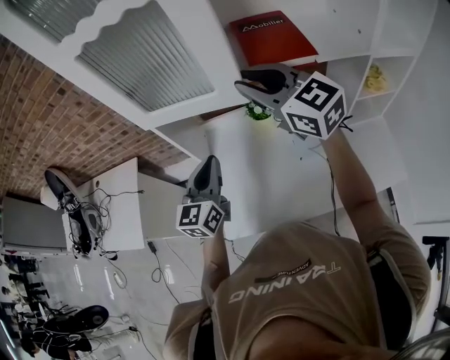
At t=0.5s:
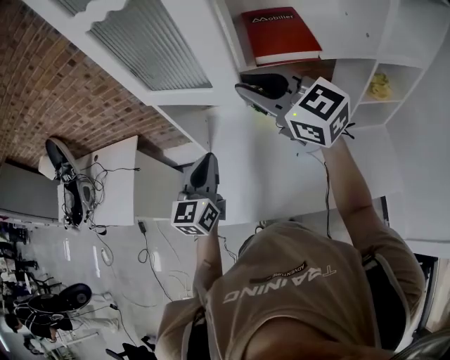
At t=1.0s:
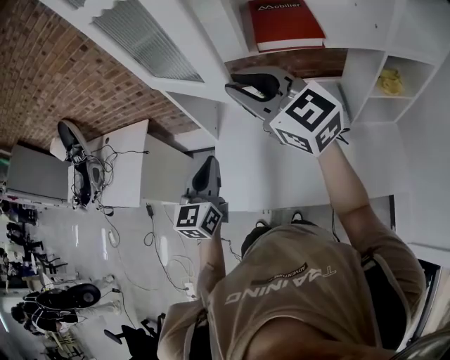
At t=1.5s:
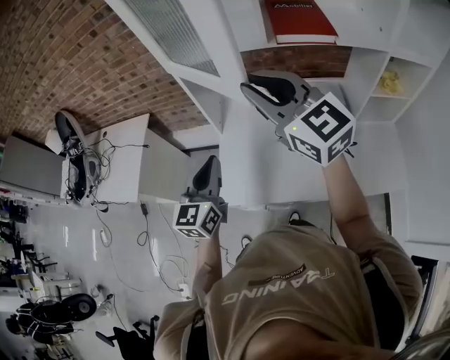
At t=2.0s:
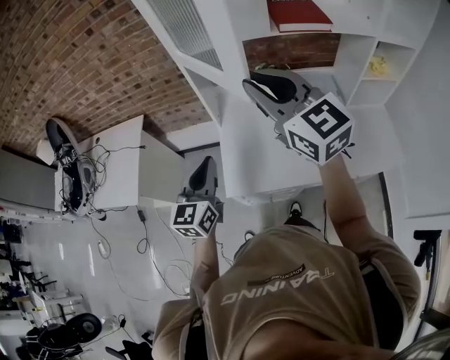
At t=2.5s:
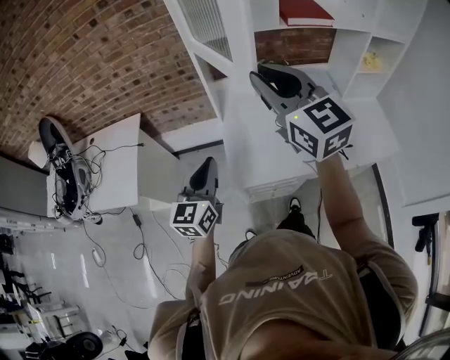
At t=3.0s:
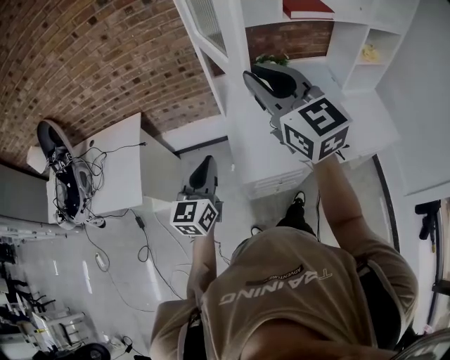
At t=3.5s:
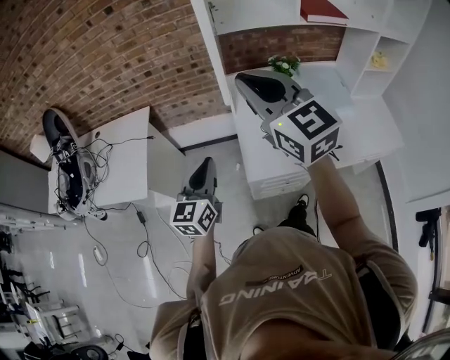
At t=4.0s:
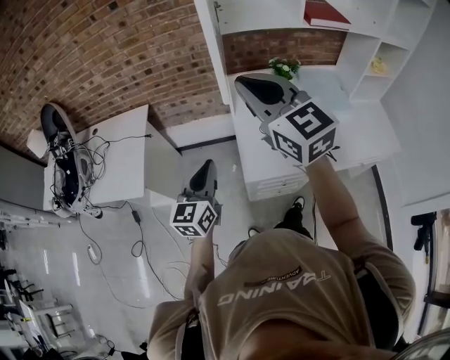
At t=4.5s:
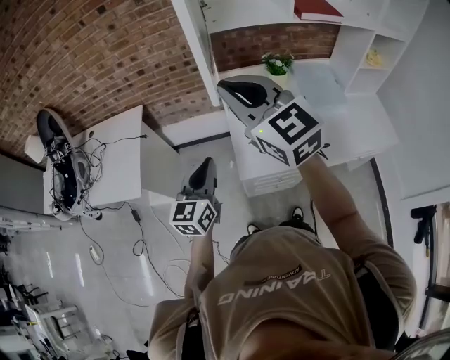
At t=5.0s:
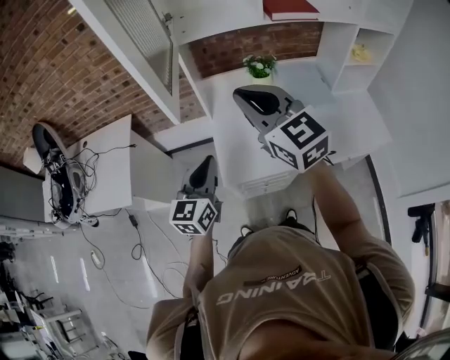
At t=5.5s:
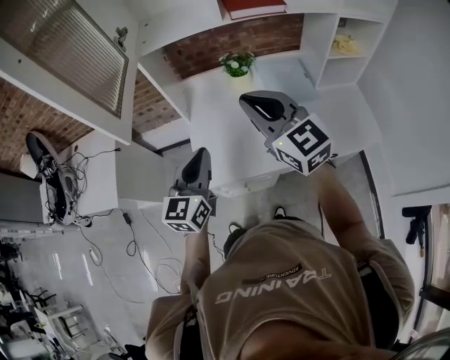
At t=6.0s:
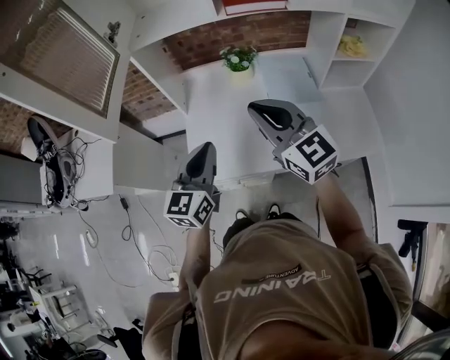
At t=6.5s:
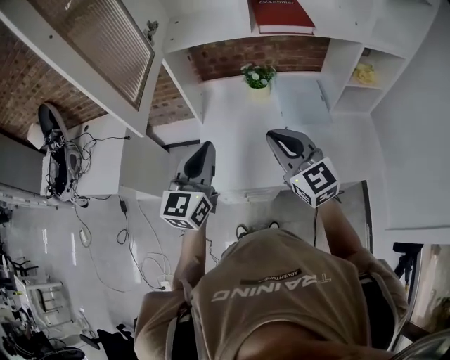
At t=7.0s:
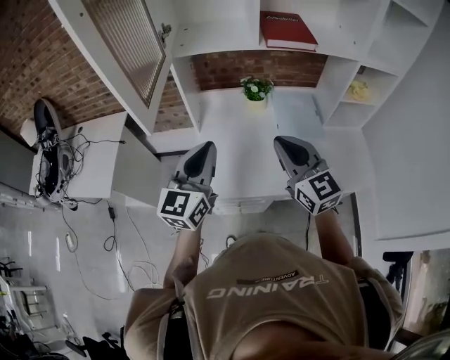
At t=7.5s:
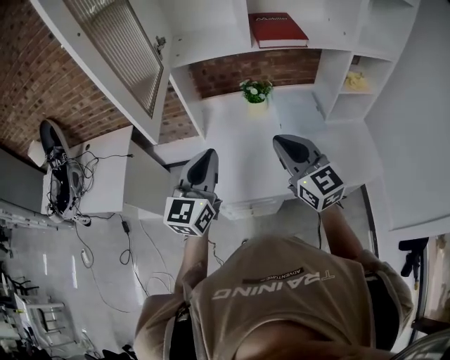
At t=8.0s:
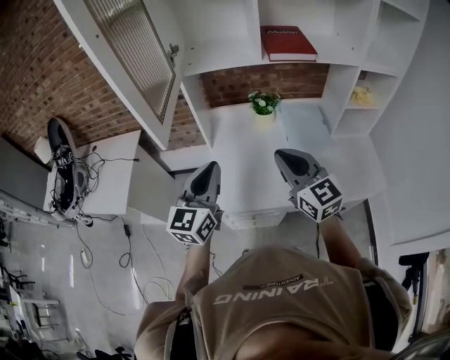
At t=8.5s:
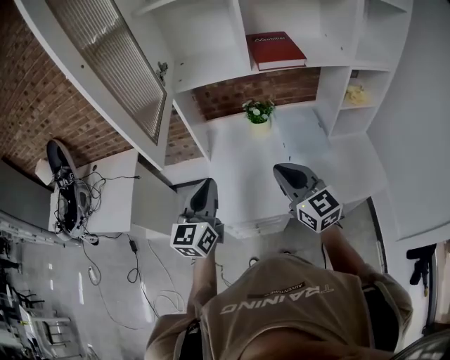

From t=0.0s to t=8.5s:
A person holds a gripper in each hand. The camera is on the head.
From t=0.0s to t=2.0s: The two grippers go approximately 20 cm backward and to the left.
From t=2.0s to t=4.0s: Both grippers move to the left, about 15 cm.
From t=4.0s to t=6.5s: The left gripper shifts some 25 cm to the right. The right gripper is displaced to the right and downward by some 30 cm.
From t=6.5s to t=8.5s: The grippers move only a little.

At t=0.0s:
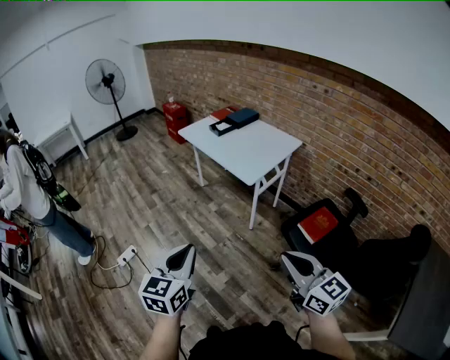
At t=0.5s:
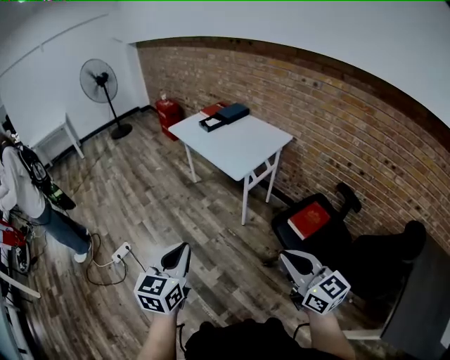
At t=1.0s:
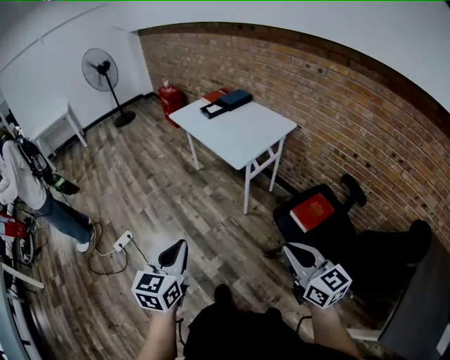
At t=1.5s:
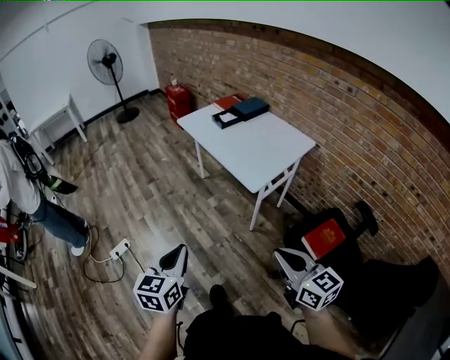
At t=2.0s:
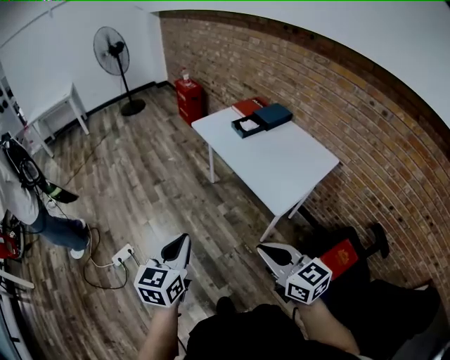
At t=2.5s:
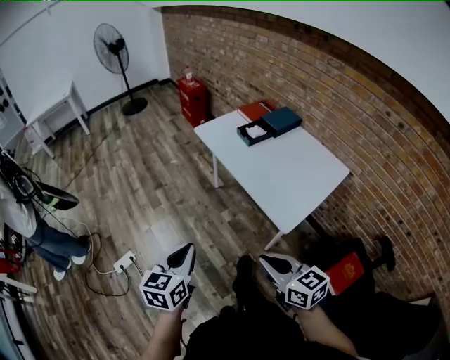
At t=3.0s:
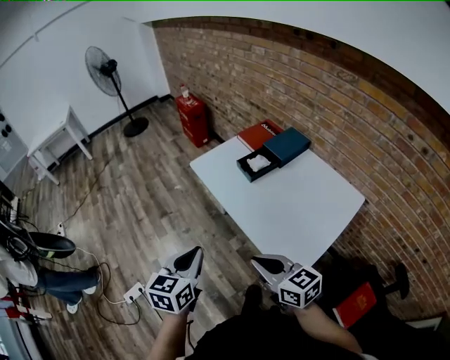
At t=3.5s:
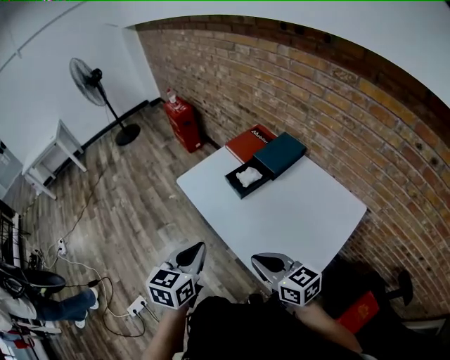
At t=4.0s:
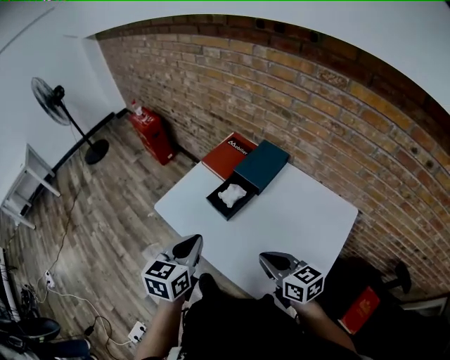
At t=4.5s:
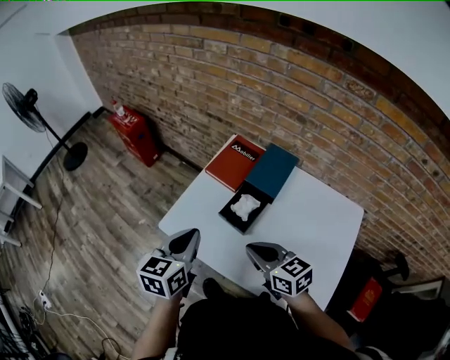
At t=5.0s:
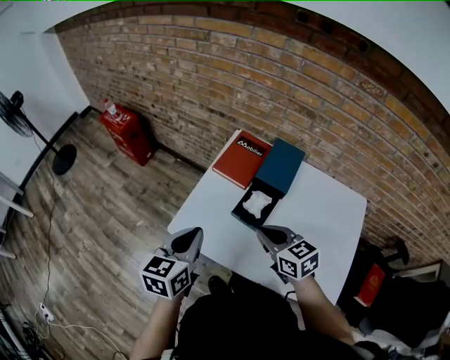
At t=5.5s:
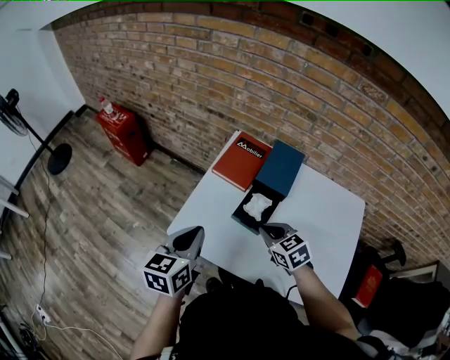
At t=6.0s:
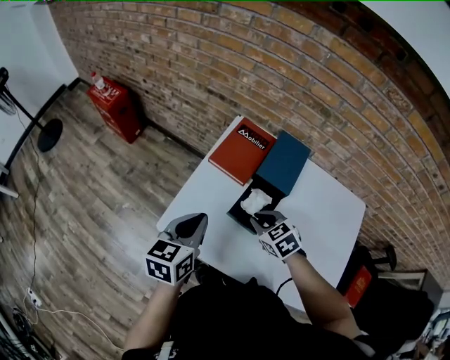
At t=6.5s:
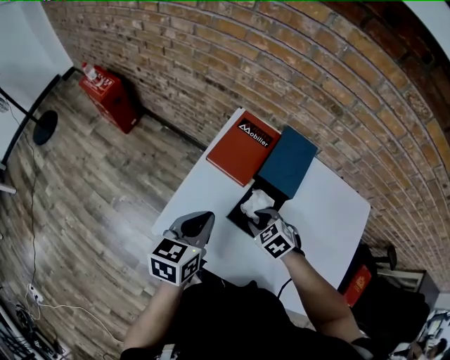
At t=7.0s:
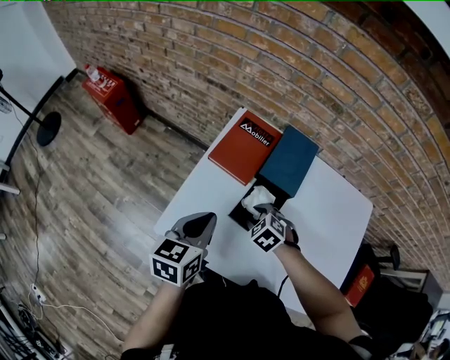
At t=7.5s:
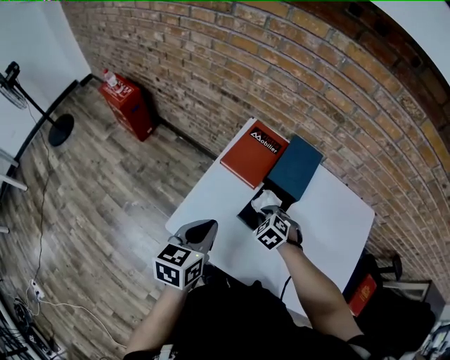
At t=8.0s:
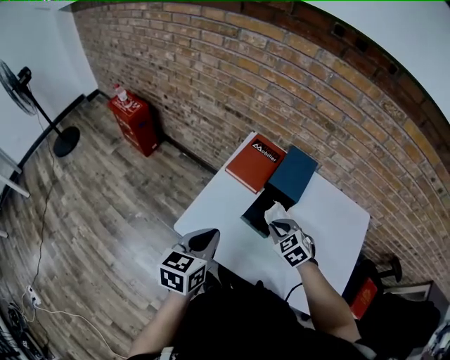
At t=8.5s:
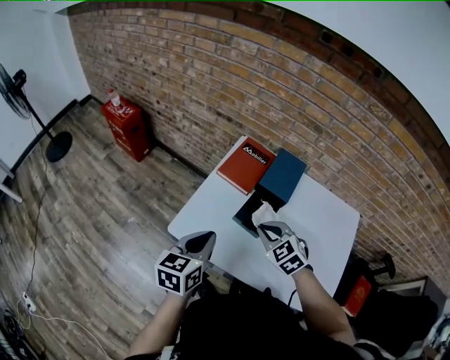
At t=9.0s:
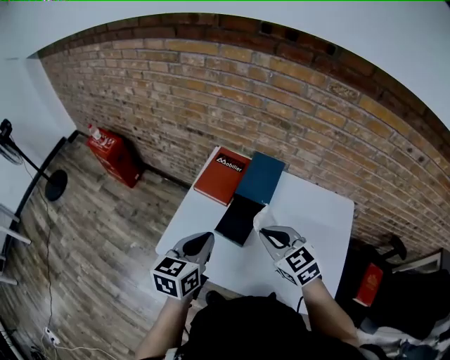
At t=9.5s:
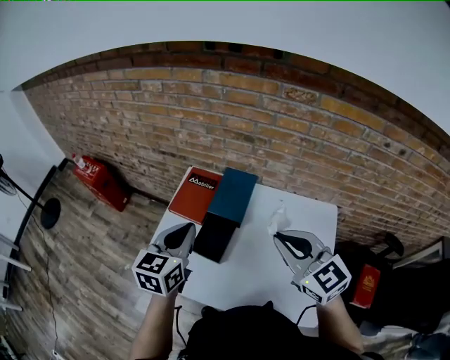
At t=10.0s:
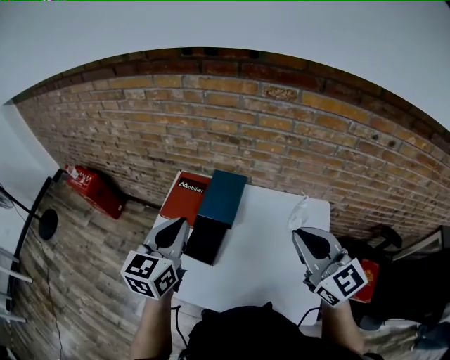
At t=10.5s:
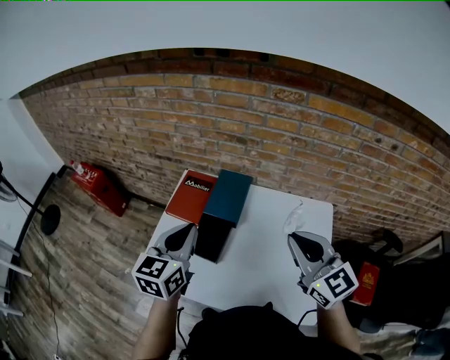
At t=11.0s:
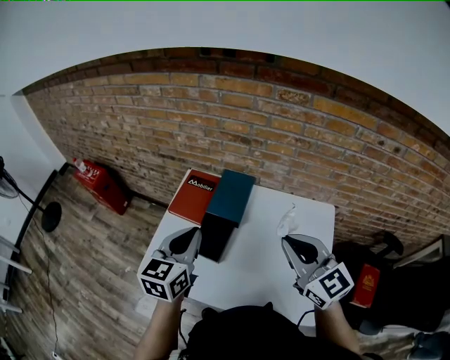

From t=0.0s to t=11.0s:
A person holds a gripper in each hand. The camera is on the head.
From t=0.0s to t=2.0s: Both grippers travel together forward, some 30 cm.
From t=2.0s to t=3.5s: The pair of grippers is taken forward, approximately 40 cm.
From t=3.5s to t=5.5s: The right gripper ends up some 35 cm from where it was, and turns by about 40 degrees; the left gripper moves approximately 35 cm, and rotates approximately 30 degrees.
From t=5.5s to t=7.5s: The right gripper moves downward and forward, roughly 15 cm, changes its angle by approximately 30 degrees, and opens, then closes again.
From t=7.5s to t=9.0s: The left gripper heads upward and to the right, covering approximately 10 cm; the right gripper shifts about 25 cm upward, and points its fingers roughly 30 degrees further upward.
From t=9.0s to t=11.0s: The left gripper is displaced to the right and upward by roughly 10 cm. Meanwhile the right gripper travels to the right and upward by approximately 20 cm, and swivels approximately 30 degrees.

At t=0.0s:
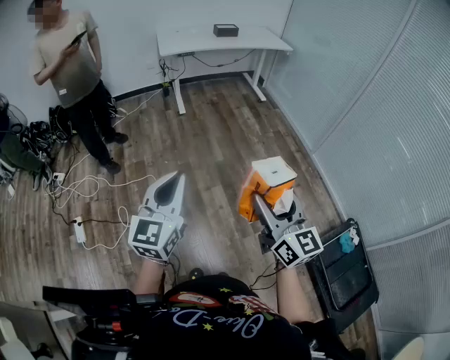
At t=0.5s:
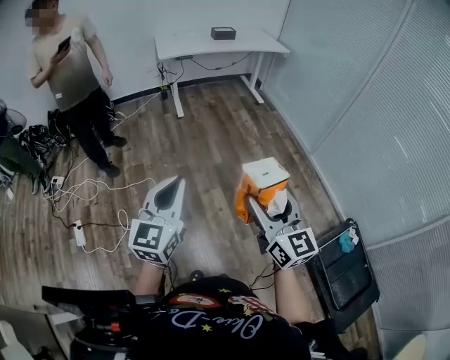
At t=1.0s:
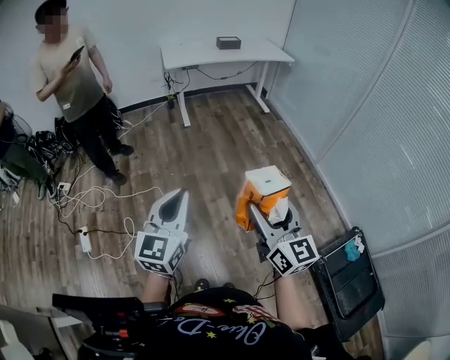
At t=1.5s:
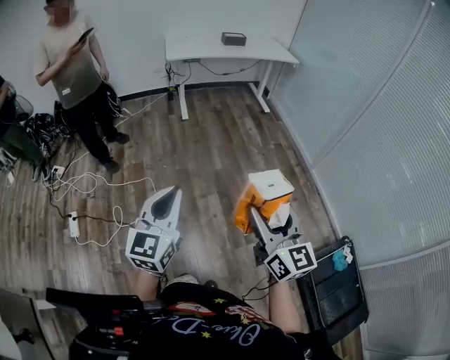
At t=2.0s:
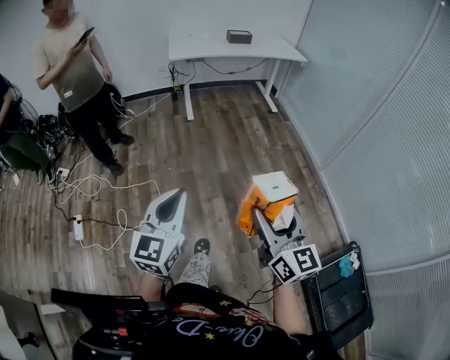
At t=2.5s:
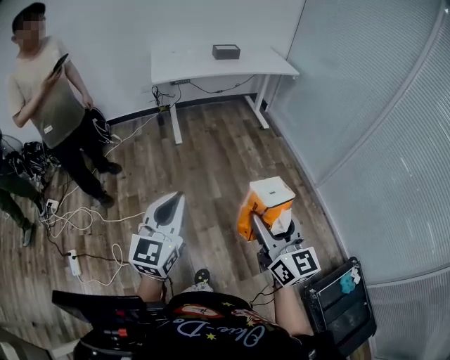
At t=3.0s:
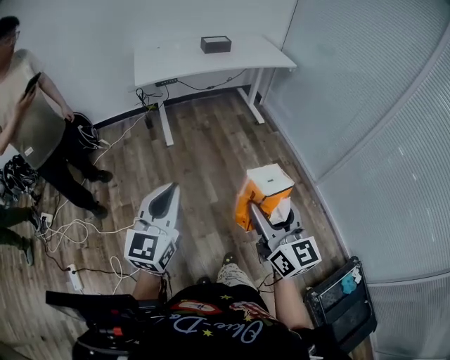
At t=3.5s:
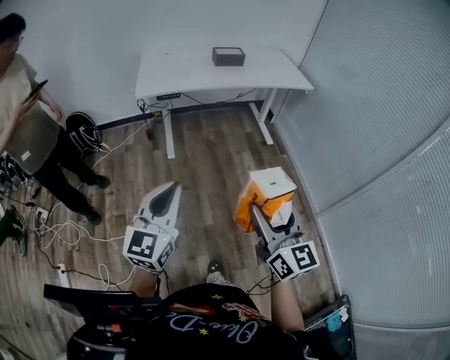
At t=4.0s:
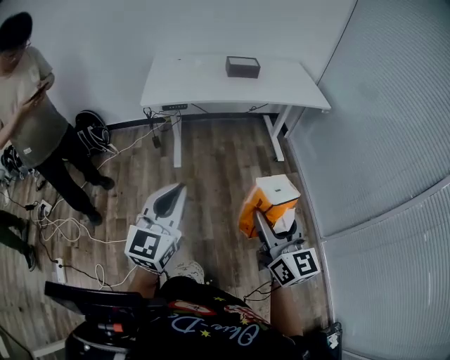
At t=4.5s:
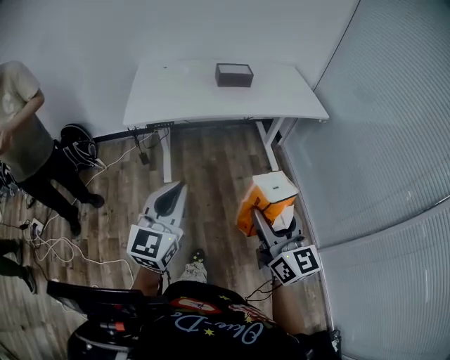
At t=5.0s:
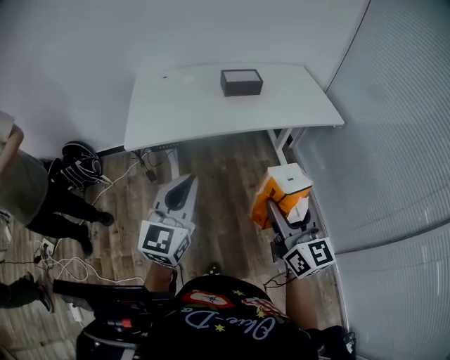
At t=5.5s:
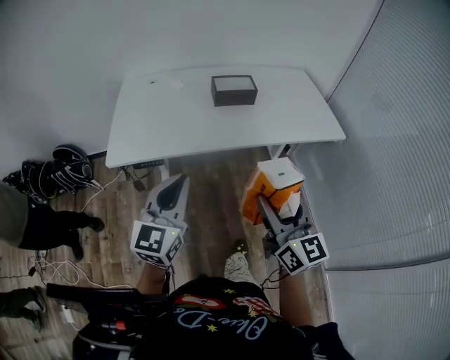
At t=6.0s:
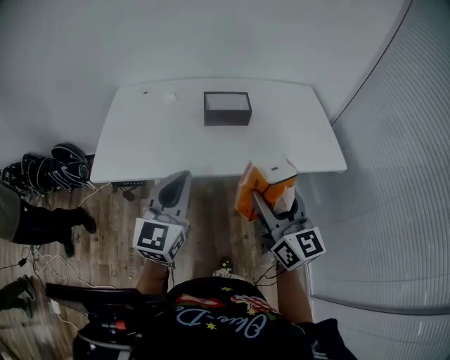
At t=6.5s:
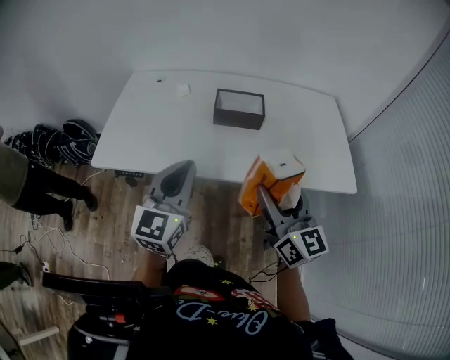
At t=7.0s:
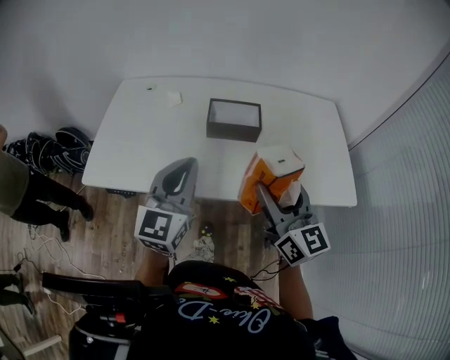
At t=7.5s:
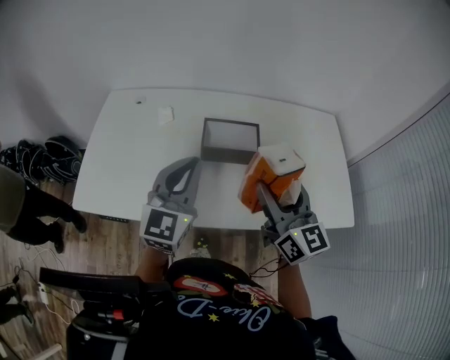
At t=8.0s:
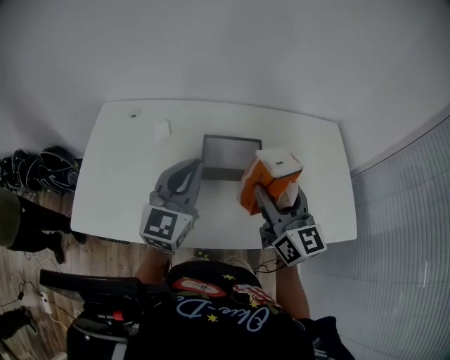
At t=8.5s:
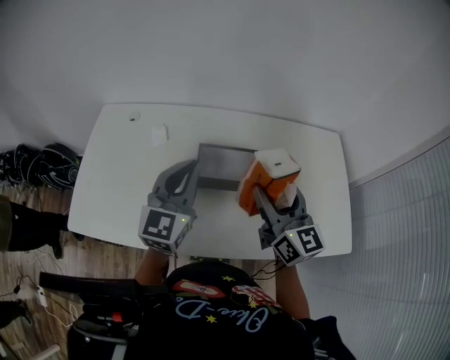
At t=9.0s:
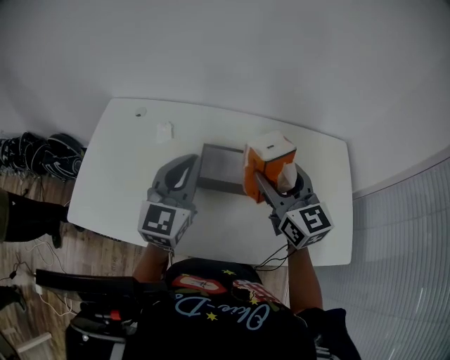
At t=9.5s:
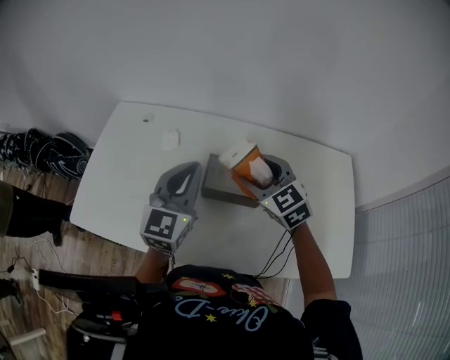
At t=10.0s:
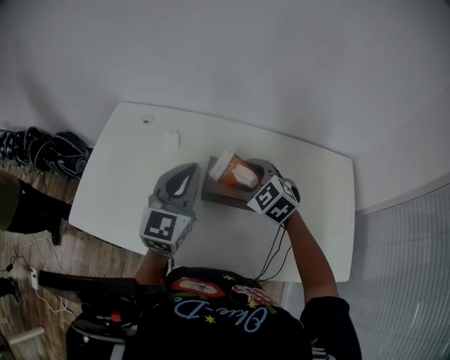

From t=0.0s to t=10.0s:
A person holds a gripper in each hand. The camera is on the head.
From t=0.0s to t=2.0s: The right gripper goes some 10 cm forward and to the right, while the left gripper heads to the right, covering about 5 cm.
From t=2.0s to t=4.0s: The pair of grippers is taken forward, roughly 70 cm.
From t=4.0s to t=6.0s: Both grippers are carried forward, some 60 cm.
From t=6.0s to t=8.0s: Both grippers travel together forward, about 40 cm.
From t=8.0s to t=10.0s: The left gripper is displaced forward by about 10 cm; the right gripper is displaced forward, downward and to the left by some 20 cm, and points its fingers some 40 degrees further downward.
